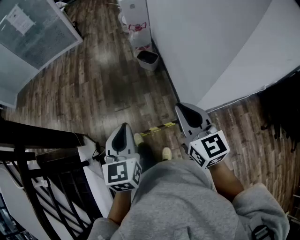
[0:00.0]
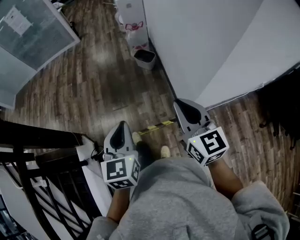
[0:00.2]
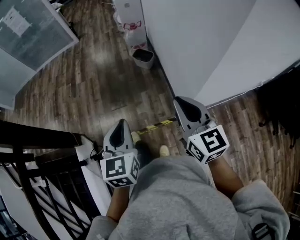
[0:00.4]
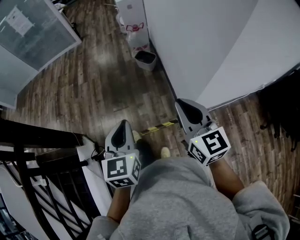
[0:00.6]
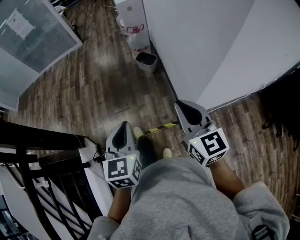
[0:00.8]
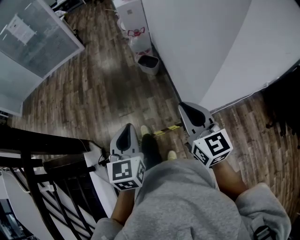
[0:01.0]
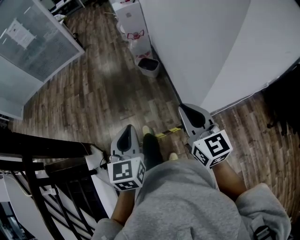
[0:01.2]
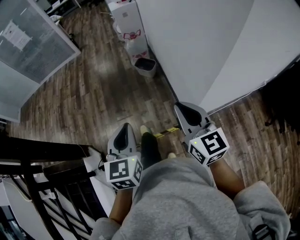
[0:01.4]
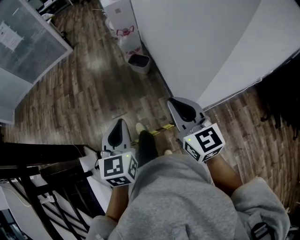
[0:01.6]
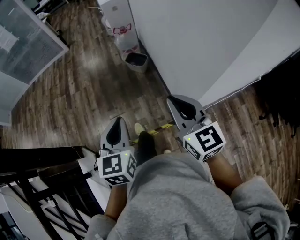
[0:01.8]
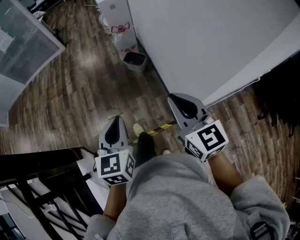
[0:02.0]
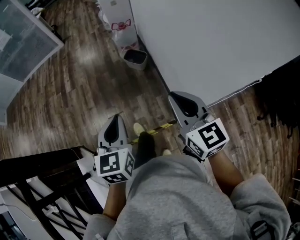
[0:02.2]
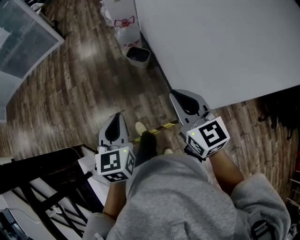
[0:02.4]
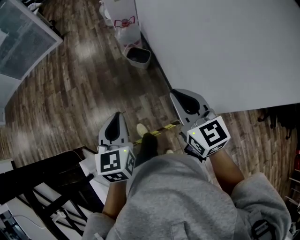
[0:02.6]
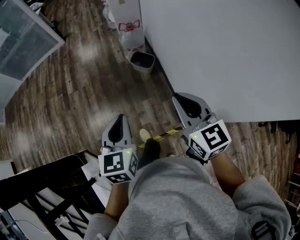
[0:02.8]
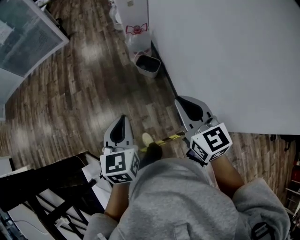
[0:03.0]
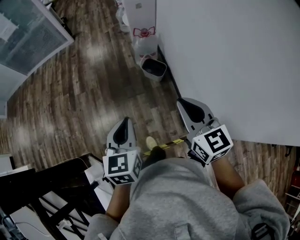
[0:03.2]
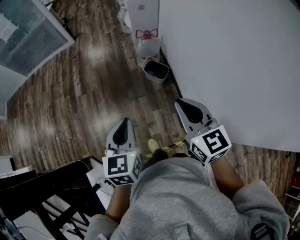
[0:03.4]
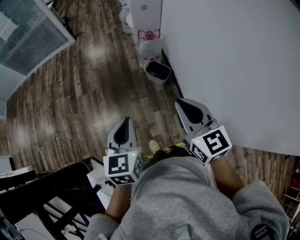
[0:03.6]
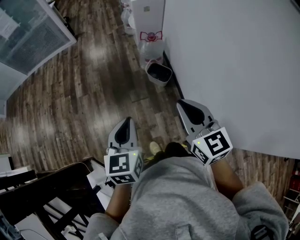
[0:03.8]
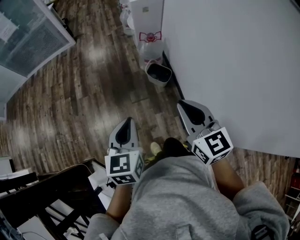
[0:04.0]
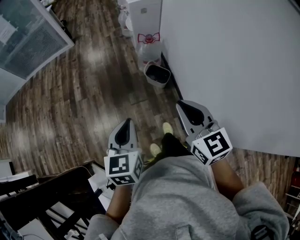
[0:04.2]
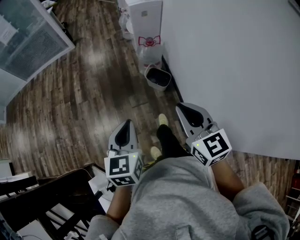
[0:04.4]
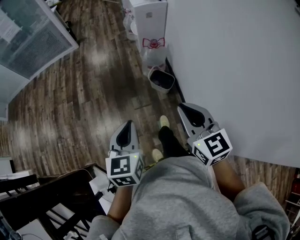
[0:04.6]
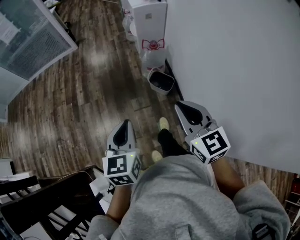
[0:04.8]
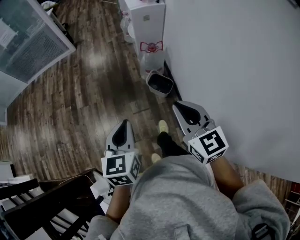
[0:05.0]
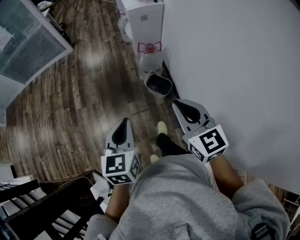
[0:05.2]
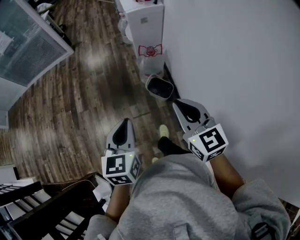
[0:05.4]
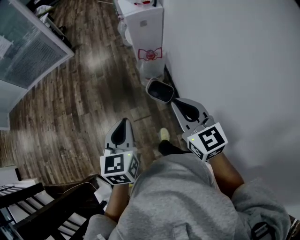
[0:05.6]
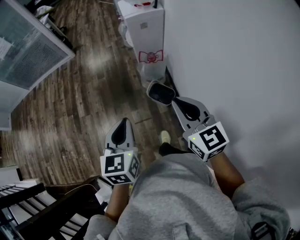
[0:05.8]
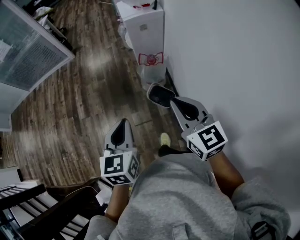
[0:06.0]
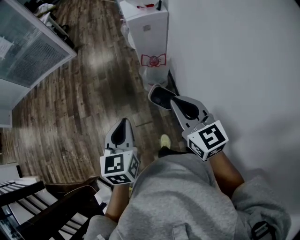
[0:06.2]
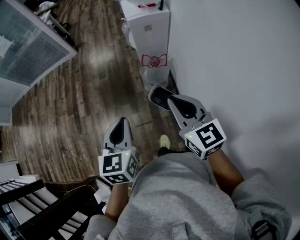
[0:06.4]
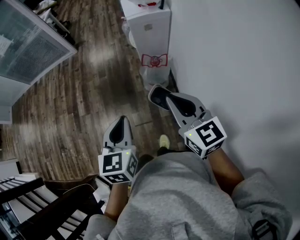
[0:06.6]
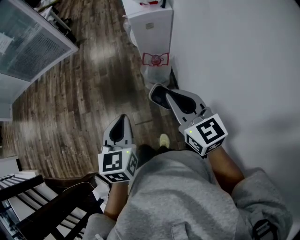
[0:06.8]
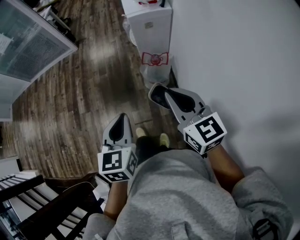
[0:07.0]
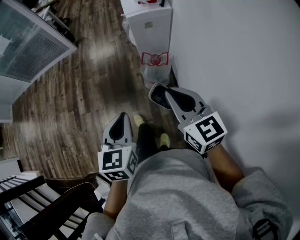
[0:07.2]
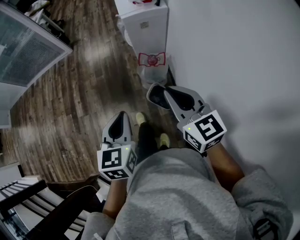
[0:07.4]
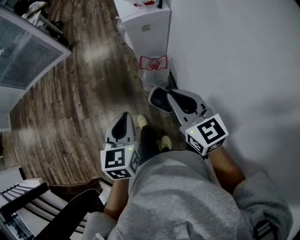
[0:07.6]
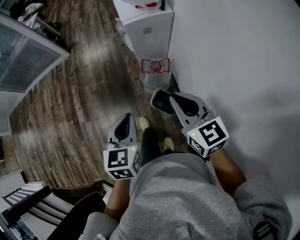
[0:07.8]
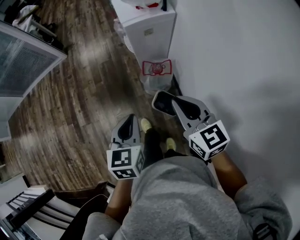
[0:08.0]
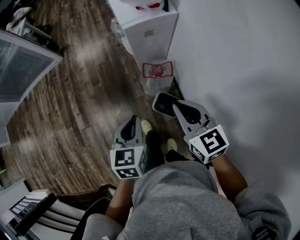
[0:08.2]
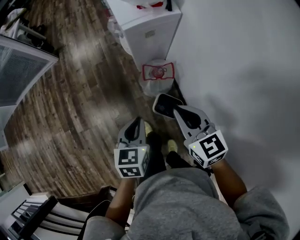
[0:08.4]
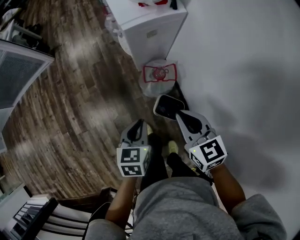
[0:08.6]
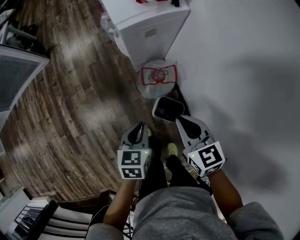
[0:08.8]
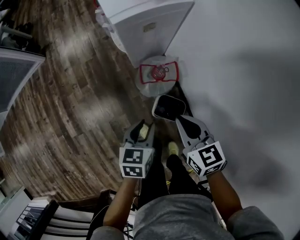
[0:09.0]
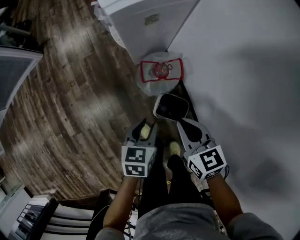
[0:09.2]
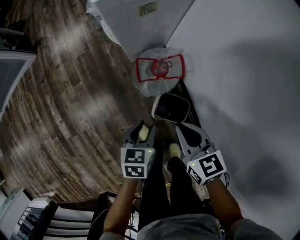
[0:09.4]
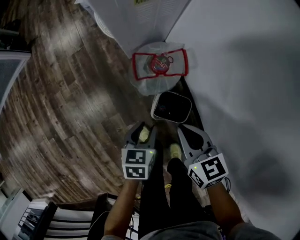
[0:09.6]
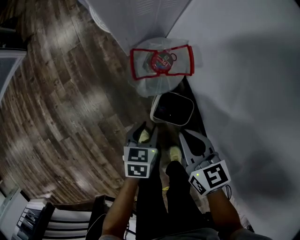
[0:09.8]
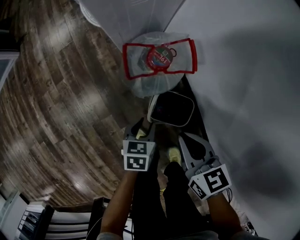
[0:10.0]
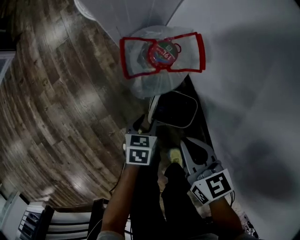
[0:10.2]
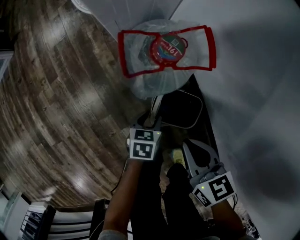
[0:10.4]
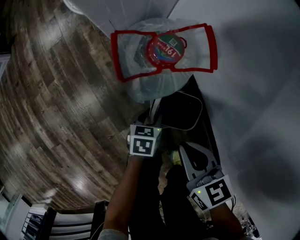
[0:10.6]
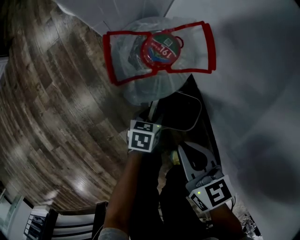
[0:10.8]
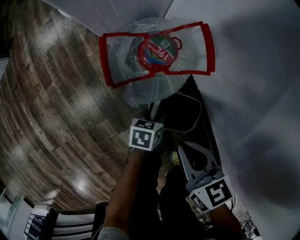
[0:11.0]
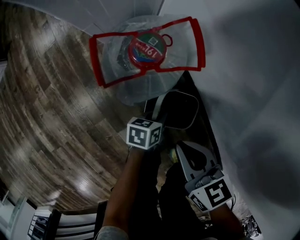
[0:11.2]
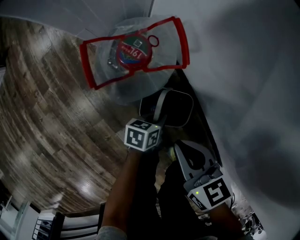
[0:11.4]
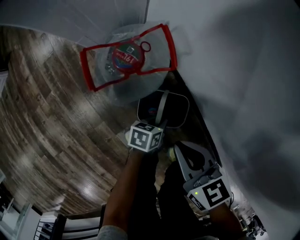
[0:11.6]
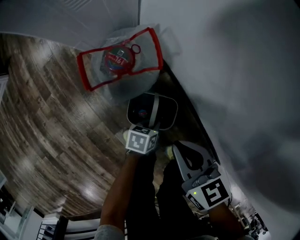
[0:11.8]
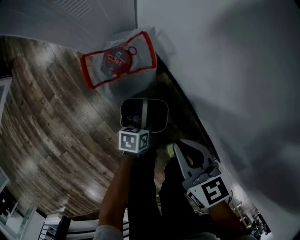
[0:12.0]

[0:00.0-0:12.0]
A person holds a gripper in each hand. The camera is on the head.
0.0 to 1.6 s: The right gripper moves approximately 5 cm. Meanwhile the left gripper heads forward, covering approximately 5 cm.
1.6 to 3.0 s: Both grippers move forward, some 25 cm.
3.0 to 4.4 s: The two grippers go about 10 cm forward and to the left.
4.4 to 6.0 s: Both grippers move forward, some 25 cm.
6.0 to 7.6 s: The grippers both shift forward by some 15 cm.
7.6 to 9.0 s: Both grippers travel together downward and forward, approximately 30 cm. The left gripper rotates some 30 degrees, and opens. The right gripper turns by about 30 degrees.
9.0 to 10.4 s: The two grippers go roughly 35 cm downward.
10.4 to 12.0 s: The right gripper goes some 10 cm upward and to the right. Meanwhile the left gripper heads to the right, covering roughly 10 cm, and closes its fingers.

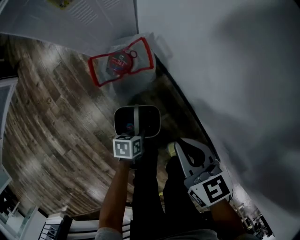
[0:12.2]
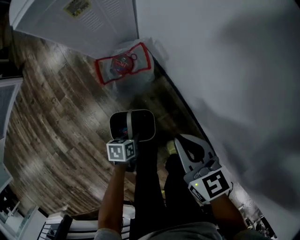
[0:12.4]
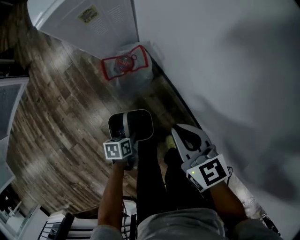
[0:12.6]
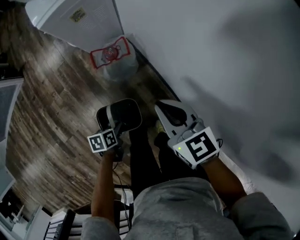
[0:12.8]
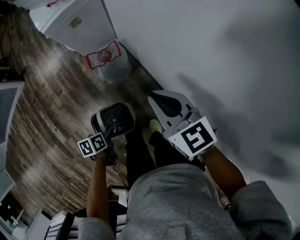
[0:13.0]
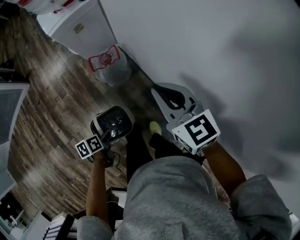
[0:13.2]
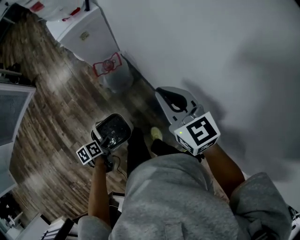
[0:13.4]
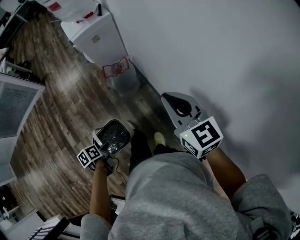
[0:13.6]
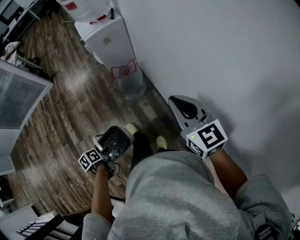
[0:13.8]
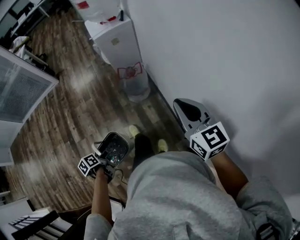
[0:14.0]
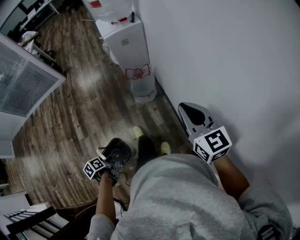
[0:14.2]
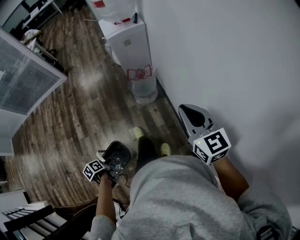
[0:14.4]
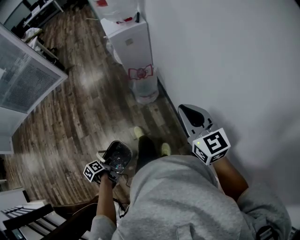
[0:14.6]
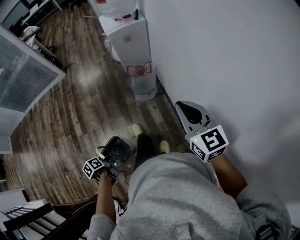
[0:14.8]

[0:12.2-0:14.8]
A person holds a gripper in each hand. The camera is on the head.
12.2 to 13.4 s: The right gripper shifts about 40 cm upward, and rotates some 30 degrees. Meanwhile the left gripper is displaced upward and backward by some 40 cm, and changes its angle by roughly 30 degrees.
13.4 to 14.8 s: The right gripper shifts some 10 cm backward. Meanwhile the left gripper moves backward and to the left, roughly 20 cm, and swivels roughly 30 degrees.

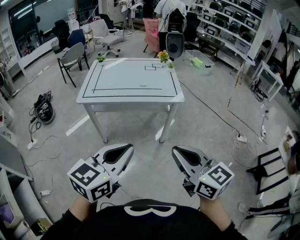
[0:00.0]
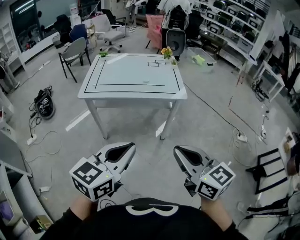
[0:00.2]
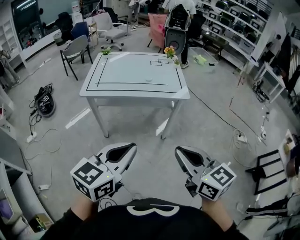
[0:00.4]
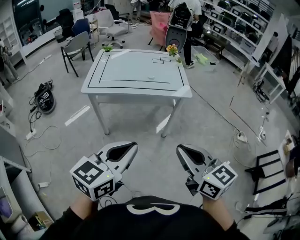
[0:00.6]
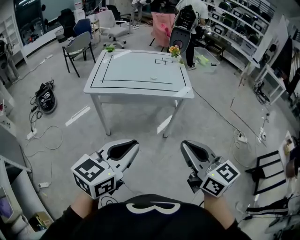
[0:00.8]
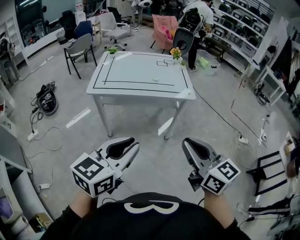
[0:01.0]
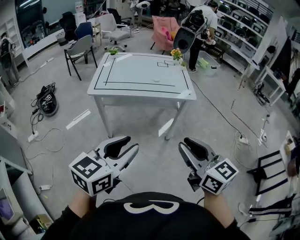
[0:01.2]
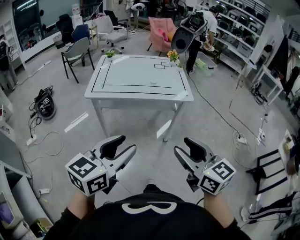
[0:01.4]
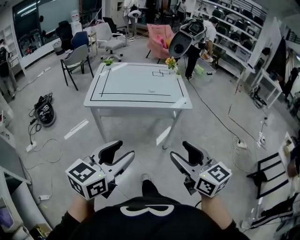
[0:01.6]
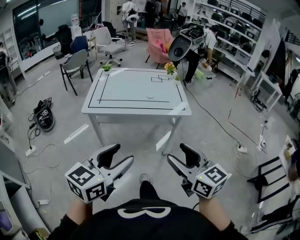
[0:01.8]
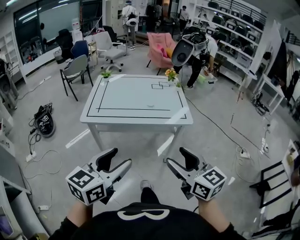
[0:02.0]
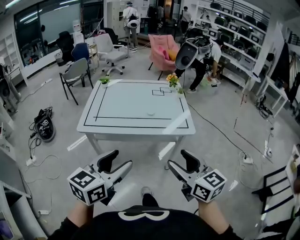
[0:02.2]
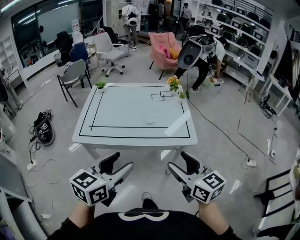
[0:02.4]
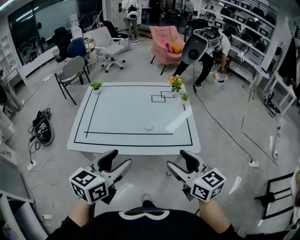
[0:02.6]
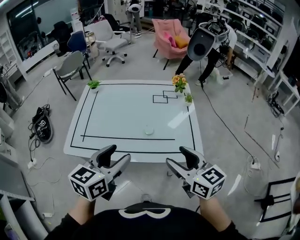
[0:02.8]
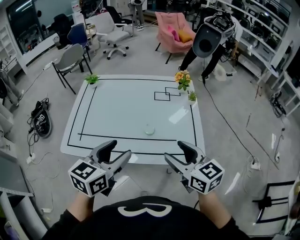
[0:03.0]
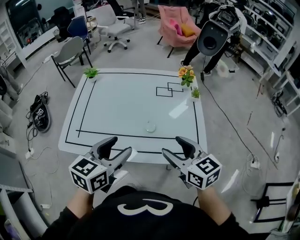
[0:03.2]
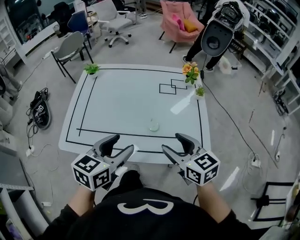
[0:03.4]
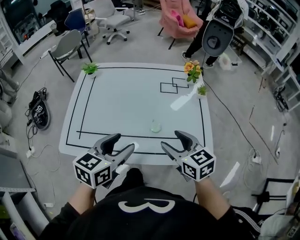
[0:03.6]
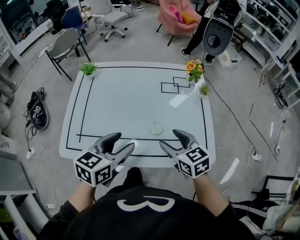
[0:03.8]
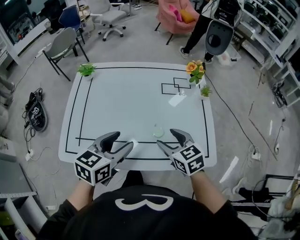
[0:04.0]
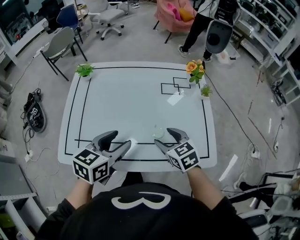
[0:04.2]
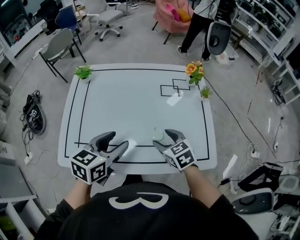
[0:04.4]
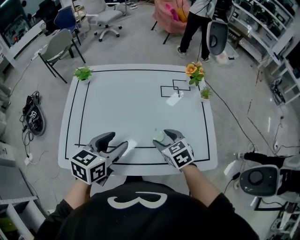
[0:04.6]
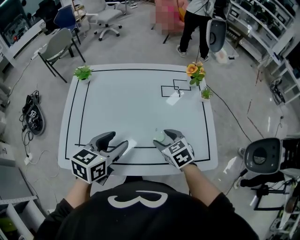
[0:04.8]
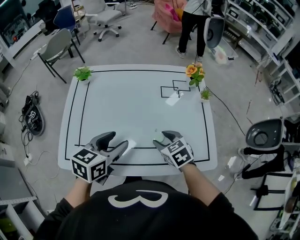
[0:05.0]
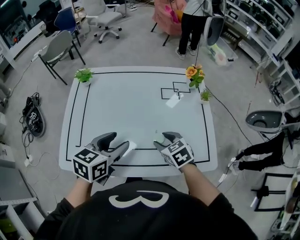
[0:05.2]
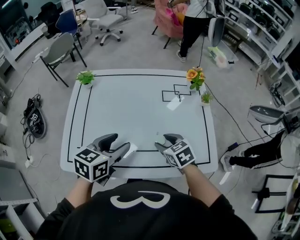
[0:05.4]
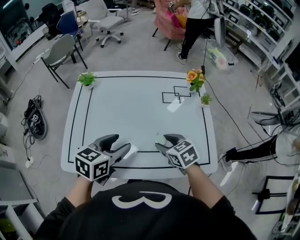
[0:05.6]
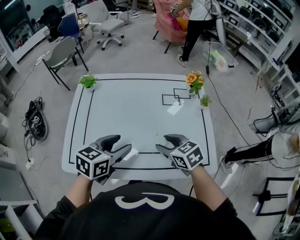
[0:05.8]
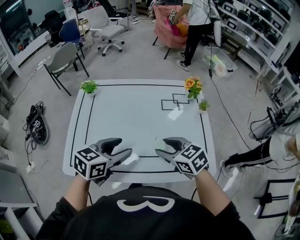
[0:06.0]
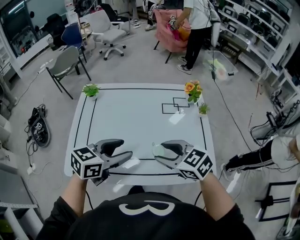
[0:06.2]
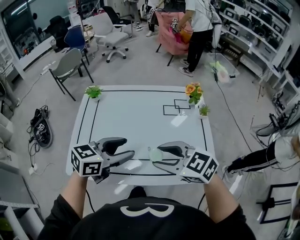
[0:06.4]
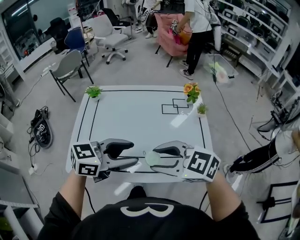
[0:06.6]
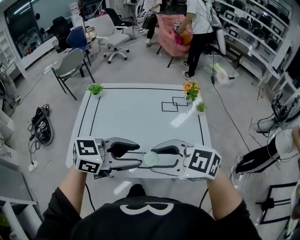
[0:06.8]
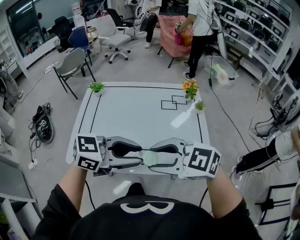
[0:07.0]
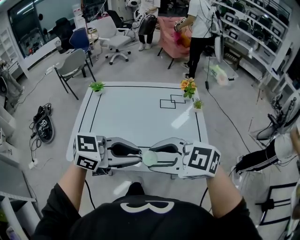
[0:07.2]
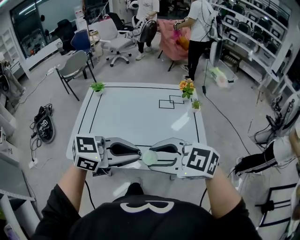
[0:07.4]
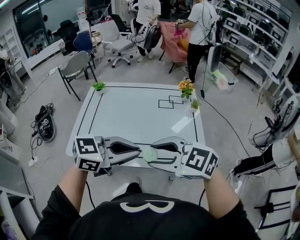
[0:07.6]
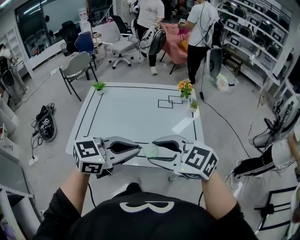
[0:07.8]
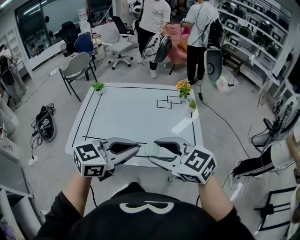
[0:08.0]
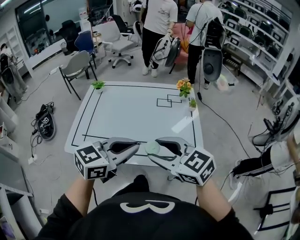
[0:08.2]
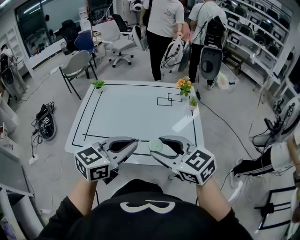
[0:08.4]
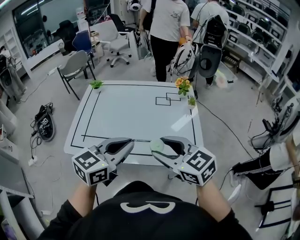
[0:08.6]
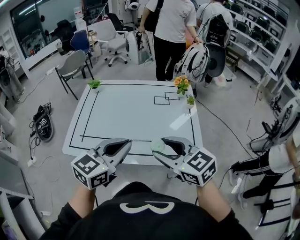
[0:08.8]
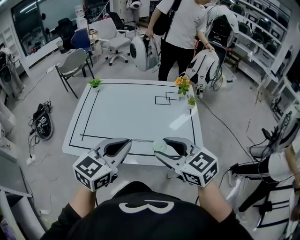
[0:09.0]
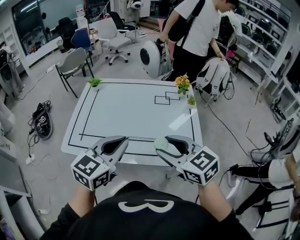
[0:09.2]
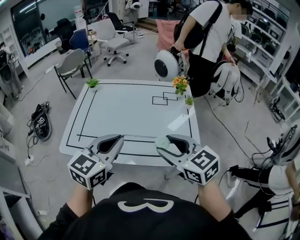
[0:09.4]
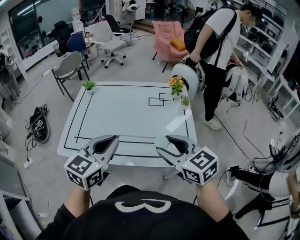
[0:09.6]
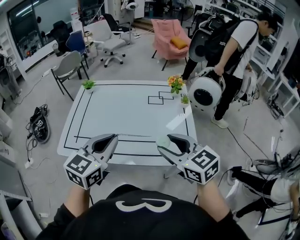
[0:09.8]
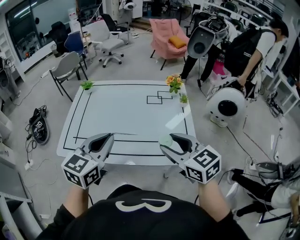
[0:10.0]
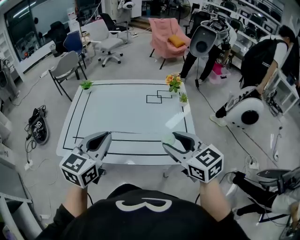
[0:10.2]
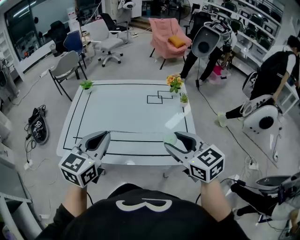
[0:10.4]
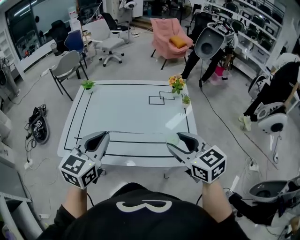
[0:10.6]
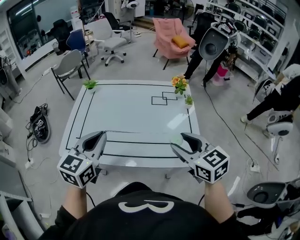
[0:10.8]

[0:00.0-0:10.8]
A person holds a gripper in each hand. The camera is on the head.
0.0 to 1.6 s: The left gripper travels to the left by approximately 10 cm, and opens its fingers, while the right gripper heads to the left, covering about 5 cm, and opens its fingers.
1.6 to 3.0 s: Both grippers are carried forward, about 50 cm.
3.0 to 4.6 s: The right gripper heads downward and forward, covering about 25 cm, and turns by some 30 degrees. The left gripper travels forward, downward and to the left by approximately 15 cm.
4.6 to 6.2 s: The right gripper is displaced upward by about 15 cm, and rotates roughly 20 degrees.
6.2 to 7.8 s: The right gripper shifts by roughly 20 cm, and changes its angle by about 20 degrees. Meanwhile the left gripper ends up about 20 cm from where it was, turns by some 20 degrees, and closes.
7.8 to 9.2 s: The left gripper rotates approximately 30 degrees, while the right gripper moves approximately 5 cm, and turns by roughly 20 degrees.
9.2 to 10.8 s: The right gripper shifts some 5 cm to the right. Meanwhile the left gripper heads to the left, covering roughly 5 cm.
